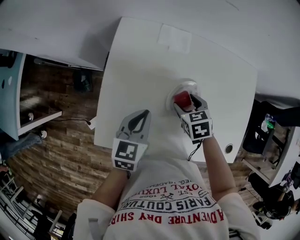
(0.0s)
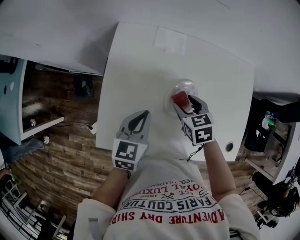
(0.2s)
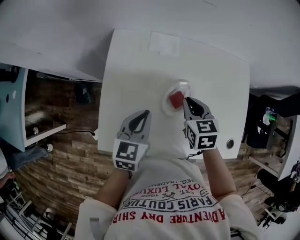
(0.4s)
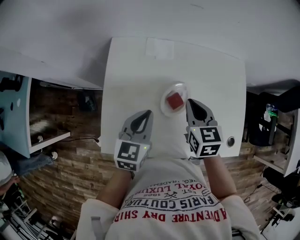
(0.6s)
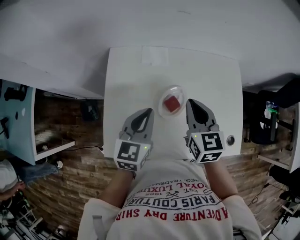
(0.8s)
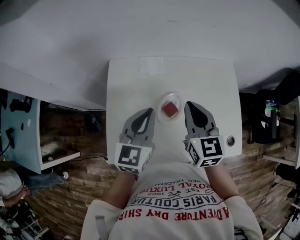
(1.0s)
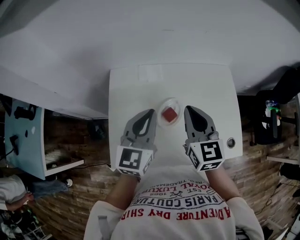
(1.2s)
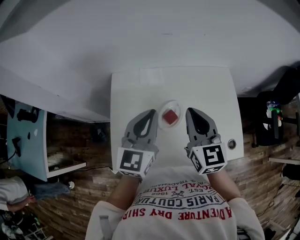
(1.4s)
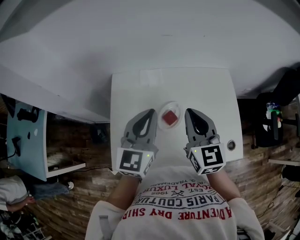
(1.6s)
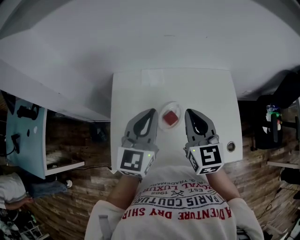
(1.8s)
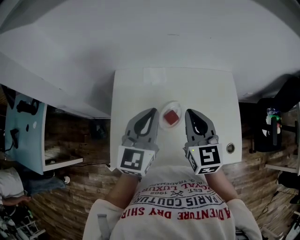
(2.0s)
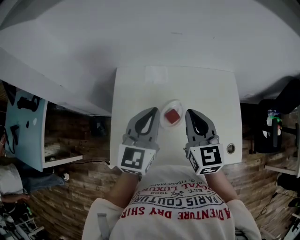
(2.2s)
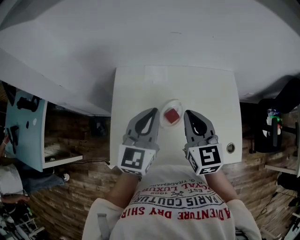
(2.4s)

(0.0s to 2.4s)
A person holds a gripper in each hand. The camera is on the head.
0.0s - 1.2s: The two grippers go about 25 cm upward. The left gripper swivels roughly 30 degrees, while the right gripper angles its fingers upward, by some 50 degrees, and closes its fingers.
1.2s - 2.4s: The grippers stay close to where they were, moving slightly.

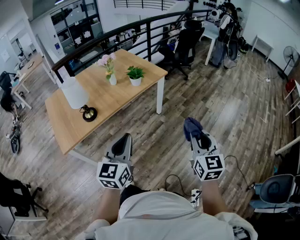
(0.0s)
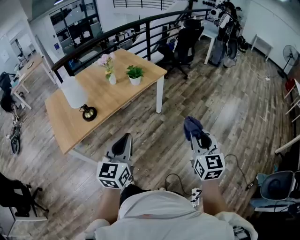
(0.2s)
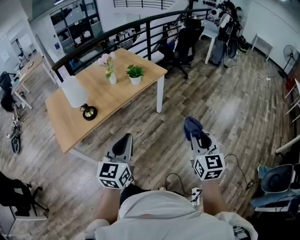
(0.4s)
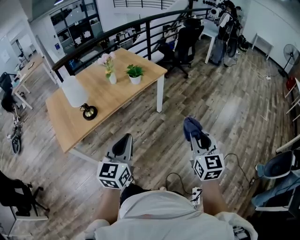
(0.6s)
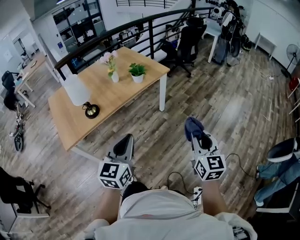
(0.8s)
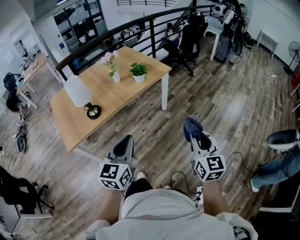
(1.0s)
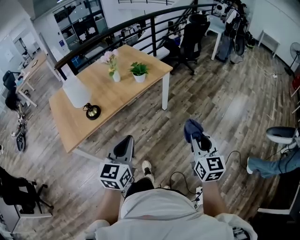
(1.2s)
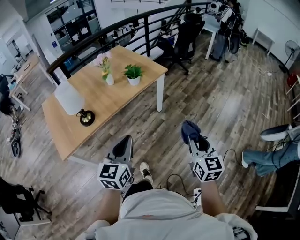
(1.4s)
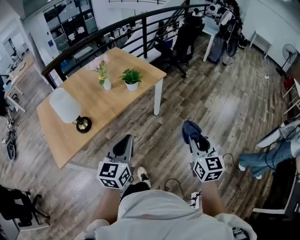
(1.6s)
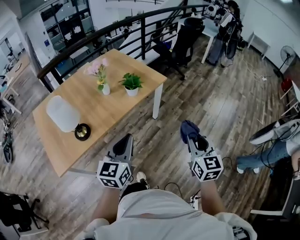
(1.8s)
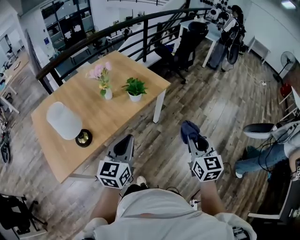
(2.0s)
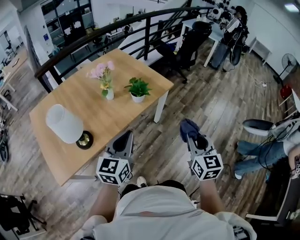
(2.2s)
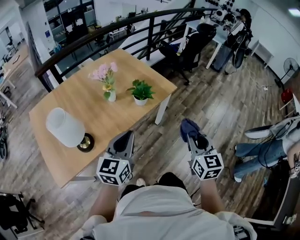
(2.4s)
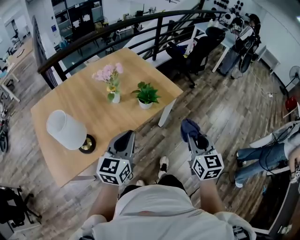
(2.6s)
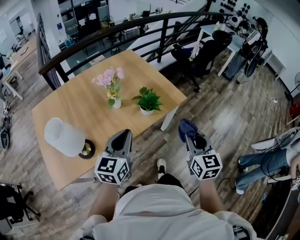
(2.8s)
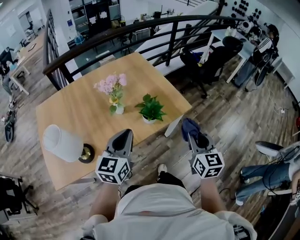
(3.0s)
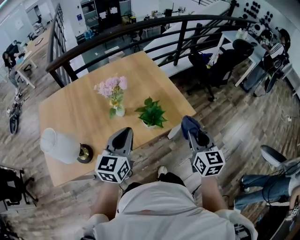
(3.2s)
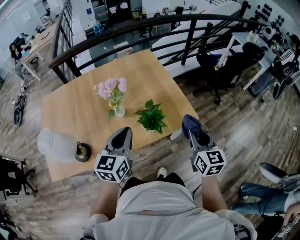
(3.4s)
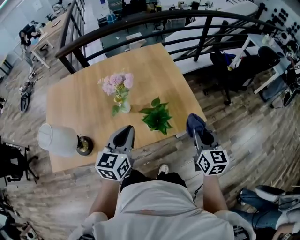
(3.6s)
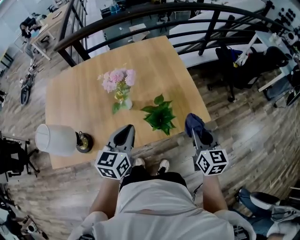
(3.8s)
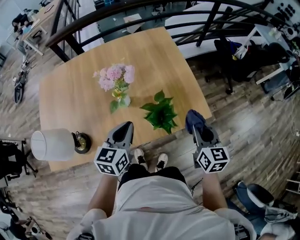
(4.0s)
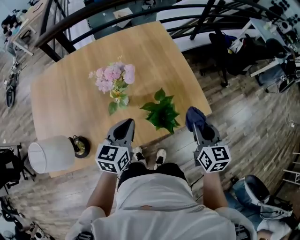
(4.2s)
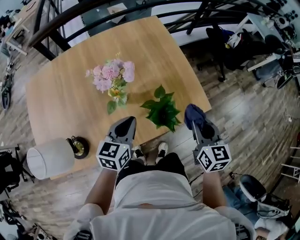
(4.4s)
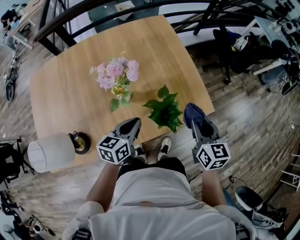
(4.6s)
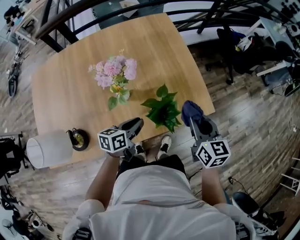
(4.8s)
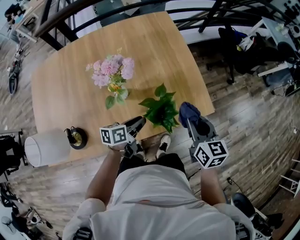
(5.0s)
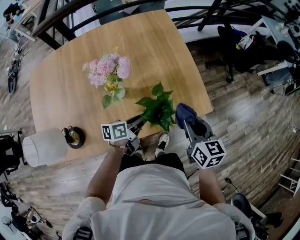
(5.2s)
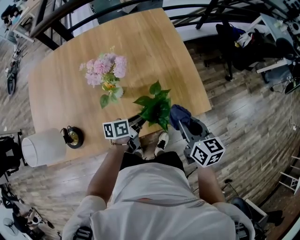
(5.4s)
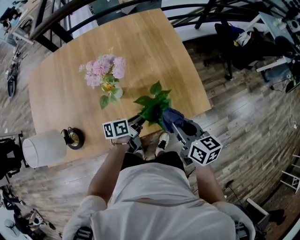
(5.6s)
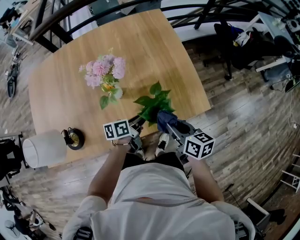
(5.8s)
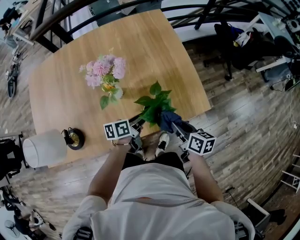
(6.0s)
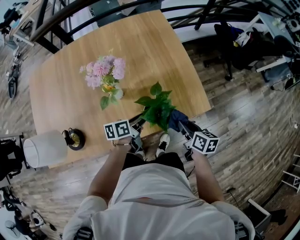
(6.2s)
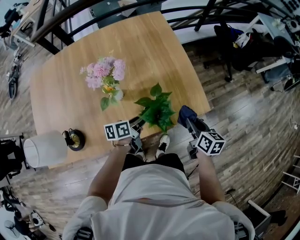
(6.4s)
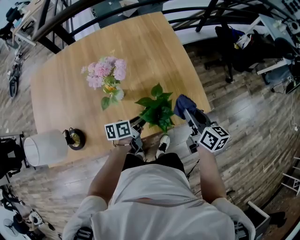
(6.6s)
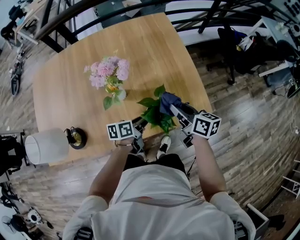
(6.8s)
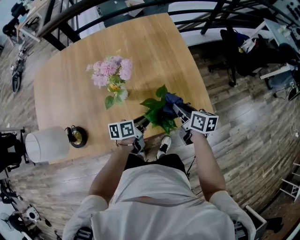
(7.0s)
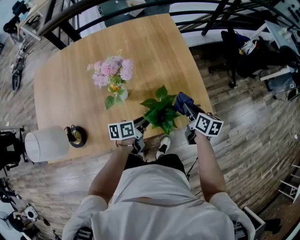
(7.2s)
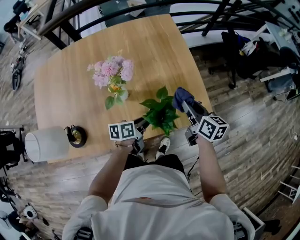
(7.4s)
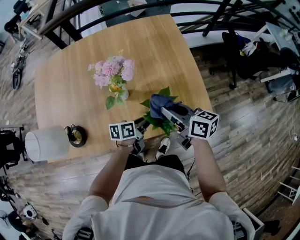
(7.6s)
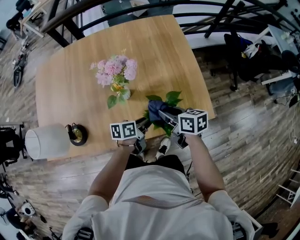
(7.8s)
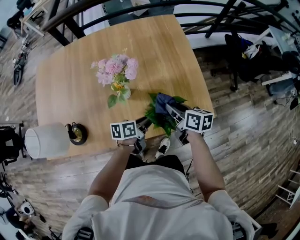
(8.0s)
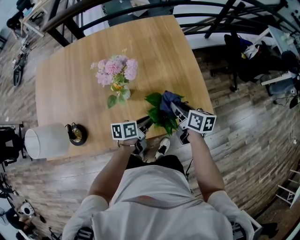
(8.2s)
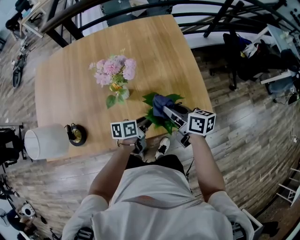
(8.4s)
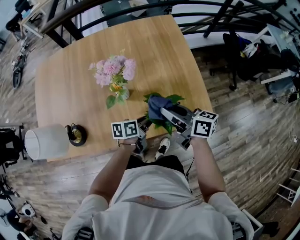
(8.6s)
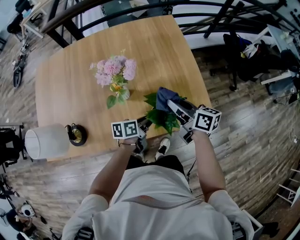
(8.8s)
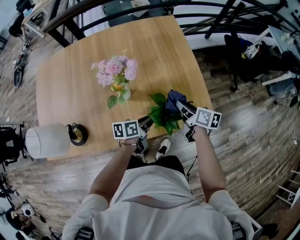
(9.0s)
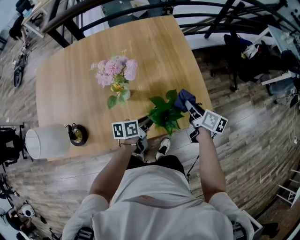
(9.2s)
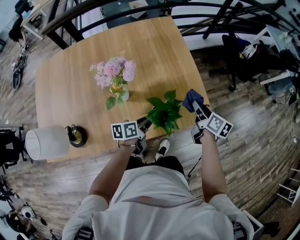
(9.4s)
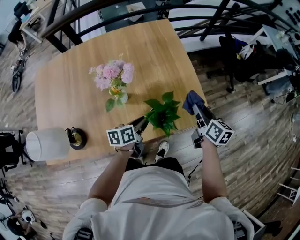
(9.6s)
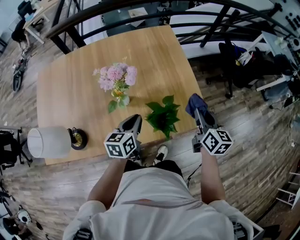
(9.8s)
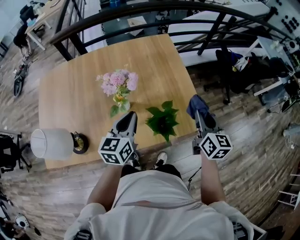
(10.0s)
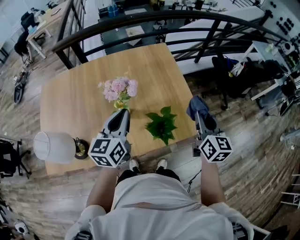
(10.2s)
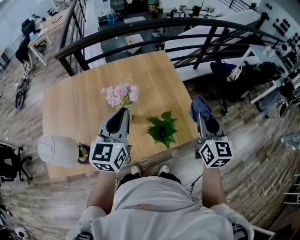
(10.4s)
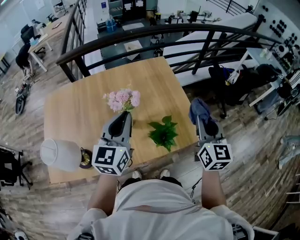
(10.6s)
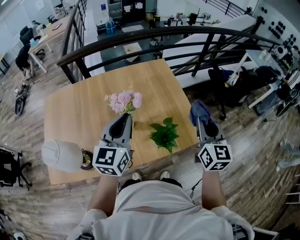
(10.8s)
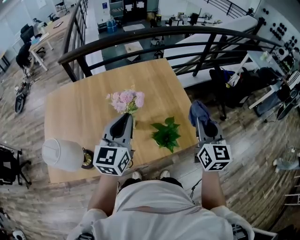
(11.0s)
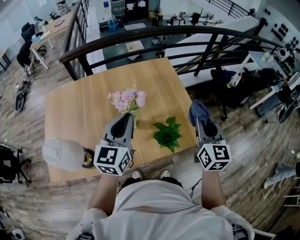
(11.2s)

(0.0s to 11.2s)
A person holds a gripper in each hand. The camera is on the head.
0.0s - 1.6s: Both grippers travel together forward, some 10 cm.
1.6s - 3.2s: The grippers both shift forward by some 40 cm.
3.2s - 4.8s: The left gripper is displaced downward and forward by about 25 cm, and rotates about 50 degrees. The right gripper moves forward and downward, about 20 cm.
4.8s - 6.4s: The left gripper ends up roughly 5 cm from where it was. Meanwhile the right gripper travels downward and to the right by some 10 cm, and turns by roughly 20 degrees.
6.4s - 8.0s: The right gripper swings left and right, approximately 15 cm each way, with 2 reversals, and swivels about 20 degrees.
8.0s - 9.6s: The right gripper goes roughly 15 cm to the right and upward, and changes its angle by about 20 degrees.
9.6s - 11.2s: Both grippers move upward, roughly 25 cm. The left gripper rotates approximately 60 degrees; the right gripper changes its angle by some 40 degrees.

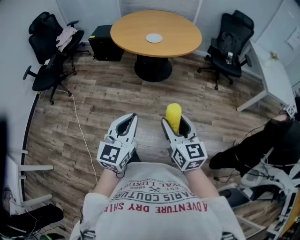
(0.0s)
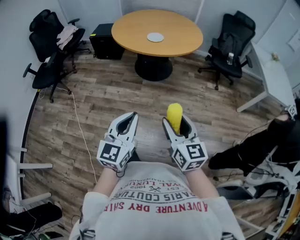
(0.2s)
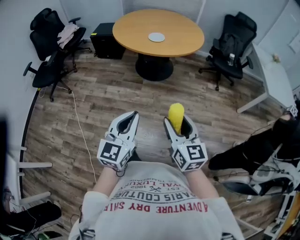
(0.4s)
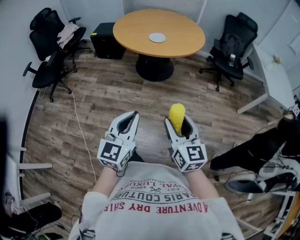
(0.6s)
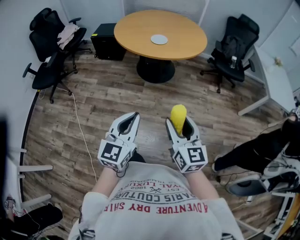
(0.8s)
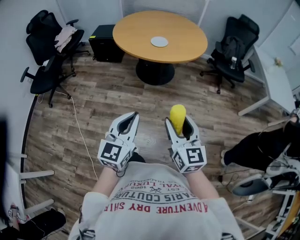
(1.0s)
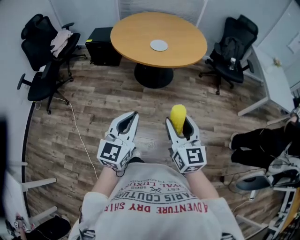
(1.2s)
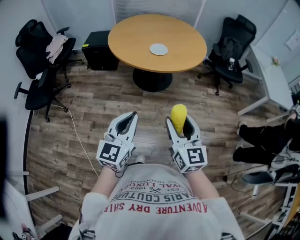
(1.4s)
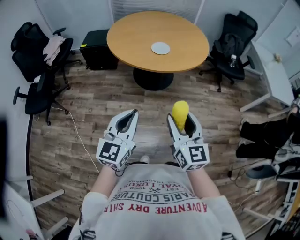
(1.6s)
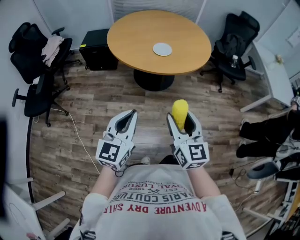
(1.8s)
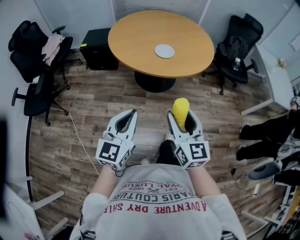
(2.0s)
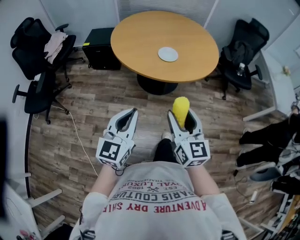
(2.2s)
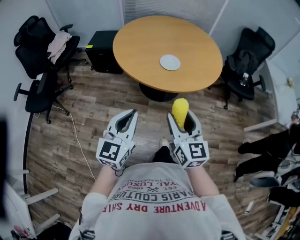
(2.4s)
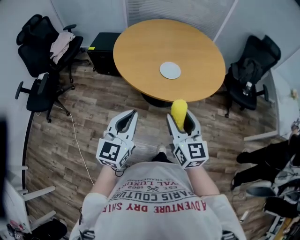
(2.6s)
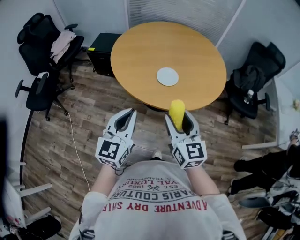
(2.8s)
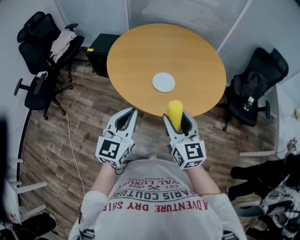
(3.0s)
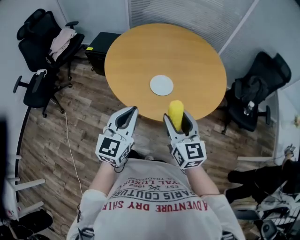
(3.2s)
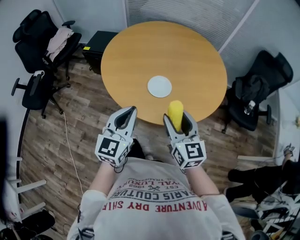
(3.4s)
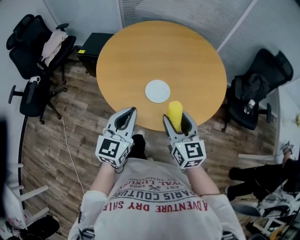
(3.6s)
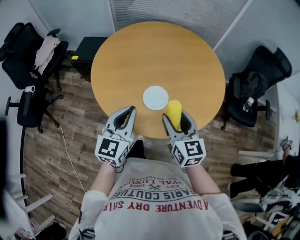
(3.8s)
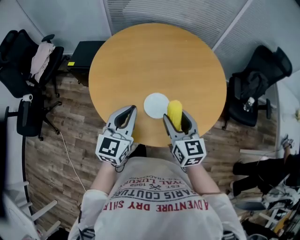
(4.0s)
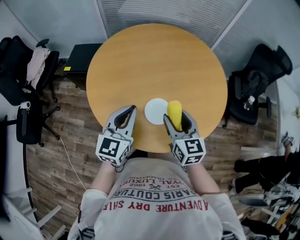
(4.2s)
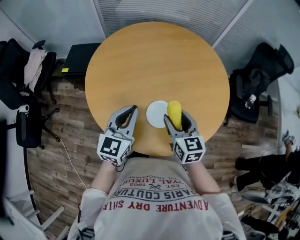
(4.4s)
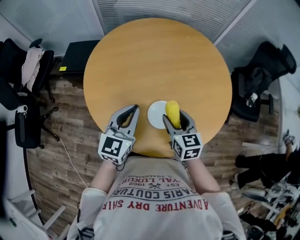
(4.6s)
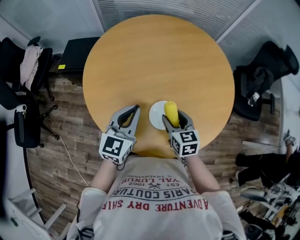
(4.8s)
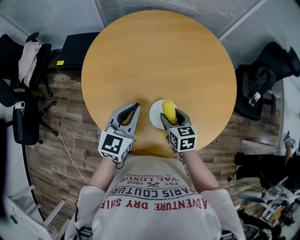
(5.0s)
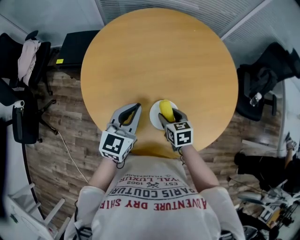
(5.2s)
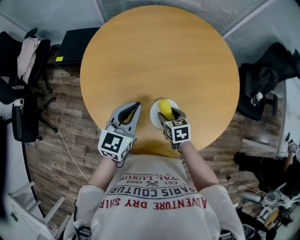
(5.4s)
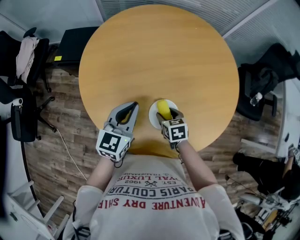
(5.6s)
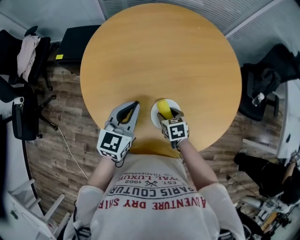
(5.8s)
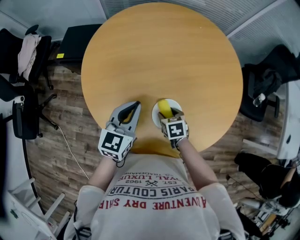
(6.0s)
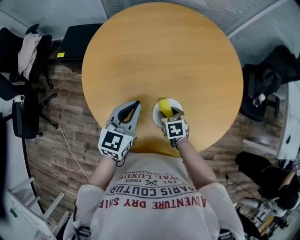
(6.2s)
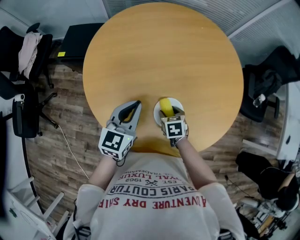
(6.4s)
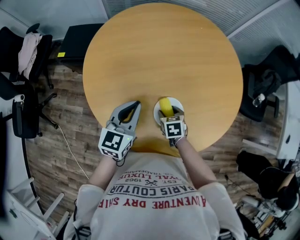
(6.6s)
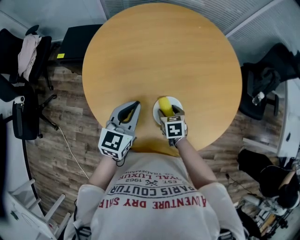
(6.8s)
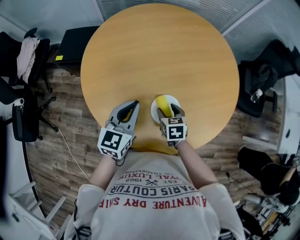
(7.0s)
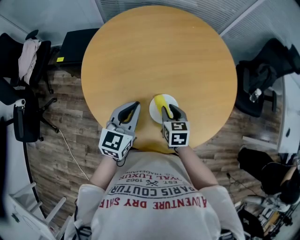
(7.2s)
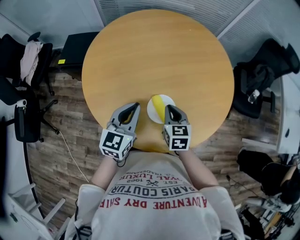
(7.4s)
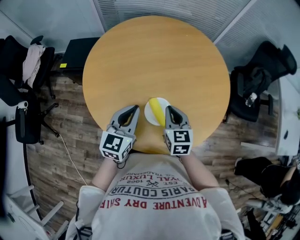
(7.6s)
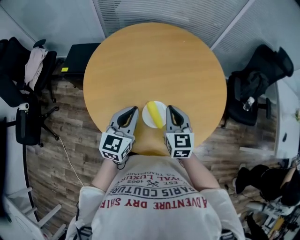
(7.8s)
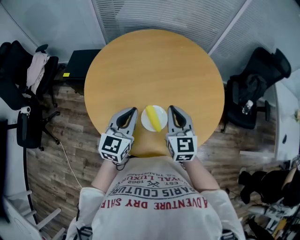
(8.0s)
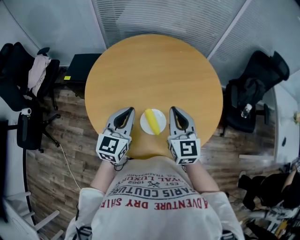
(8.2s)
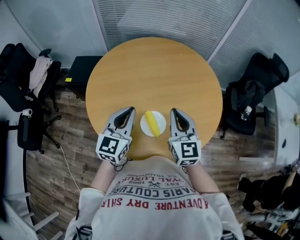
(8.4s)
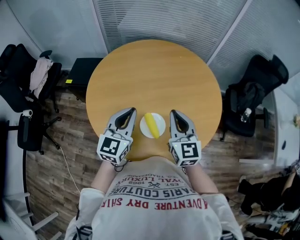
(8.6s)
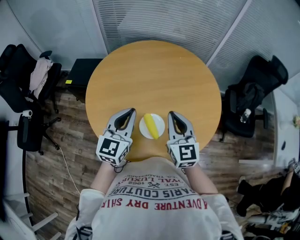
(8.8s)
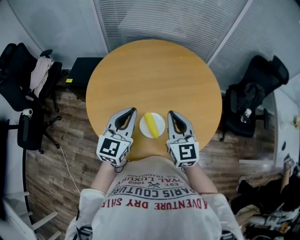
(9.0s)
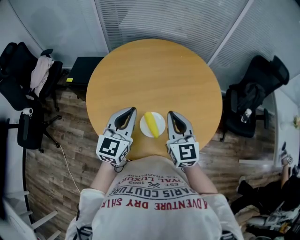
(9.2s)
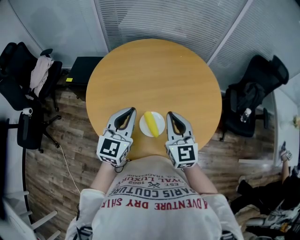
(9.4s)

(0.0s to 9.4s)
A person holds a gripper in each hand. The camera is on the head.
0.0s - 1.6s: The two grippers go roughly 25 cm forward and to the left.
1.6s - 3.2s: The grippers both shift forward by about 35 cm.
3.2s - 4.8s: The left gripper moves forward, about 30 cm, while the right gripper is displaced forward and downward by roughly 30 cm, and swivels about 30 degrees.
4.8s - 6.2s: The right gripper shifts some 15 cm downward, and rotates some 30 degrees. The left gripper changes place by some 5 cm.
6.2s - 7.8s: The right gripper is displaced upward by about 25 cm, tilts its fingers some 40 degrees upward, and closes up. Meanwhile the left gripper travels upward by about 5 cm.
7.8s - 9.4s: The grippers both shift upward by some 10 cm.
